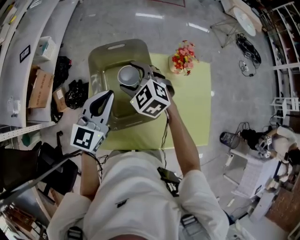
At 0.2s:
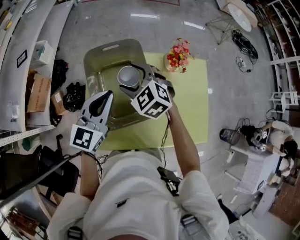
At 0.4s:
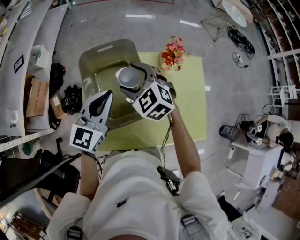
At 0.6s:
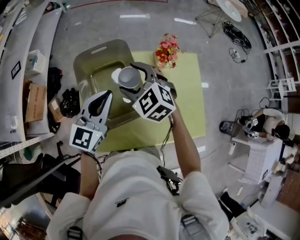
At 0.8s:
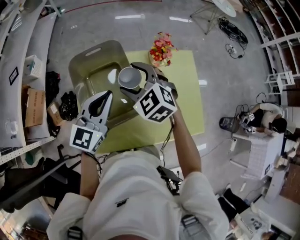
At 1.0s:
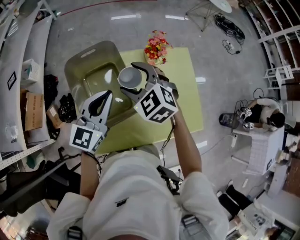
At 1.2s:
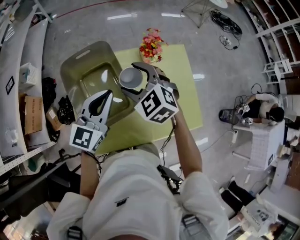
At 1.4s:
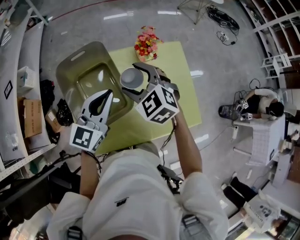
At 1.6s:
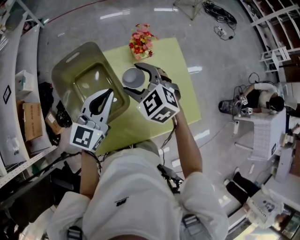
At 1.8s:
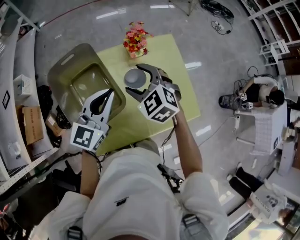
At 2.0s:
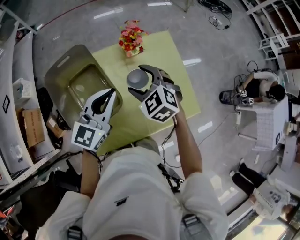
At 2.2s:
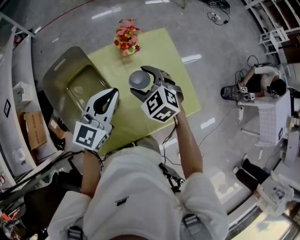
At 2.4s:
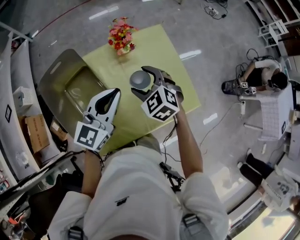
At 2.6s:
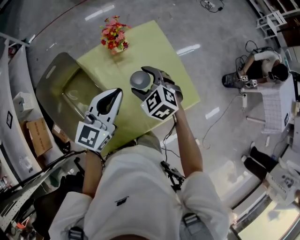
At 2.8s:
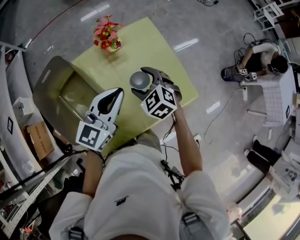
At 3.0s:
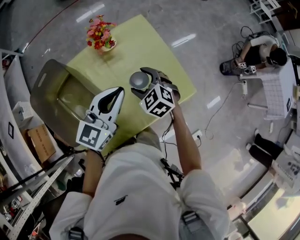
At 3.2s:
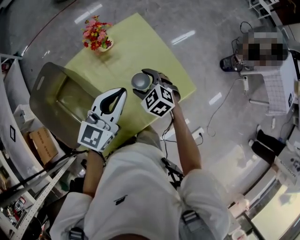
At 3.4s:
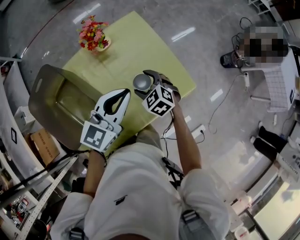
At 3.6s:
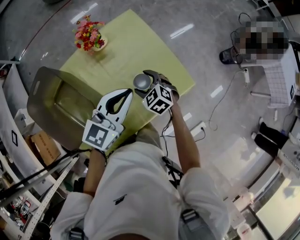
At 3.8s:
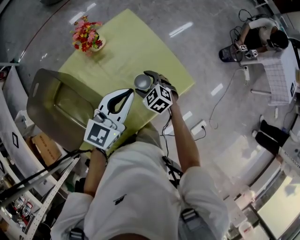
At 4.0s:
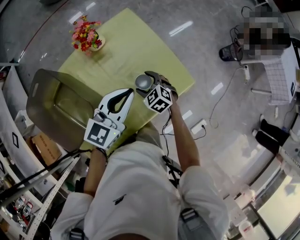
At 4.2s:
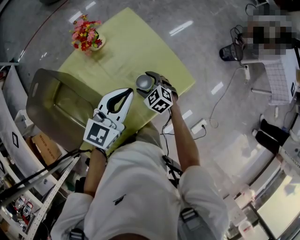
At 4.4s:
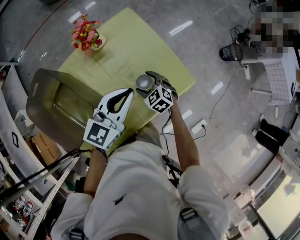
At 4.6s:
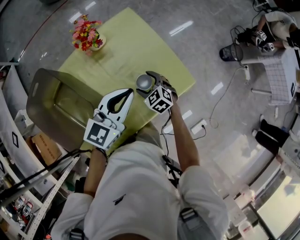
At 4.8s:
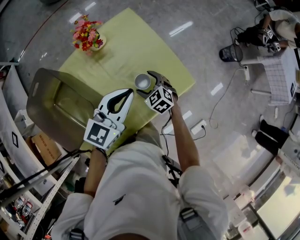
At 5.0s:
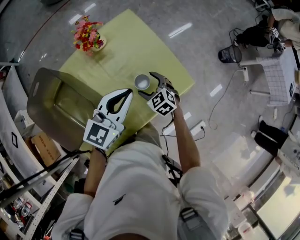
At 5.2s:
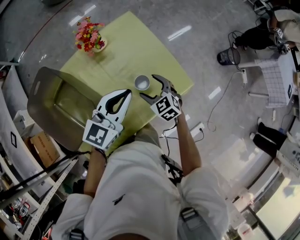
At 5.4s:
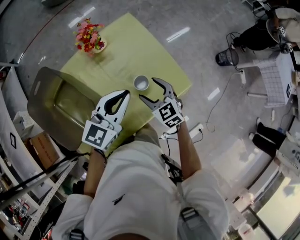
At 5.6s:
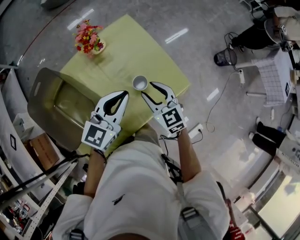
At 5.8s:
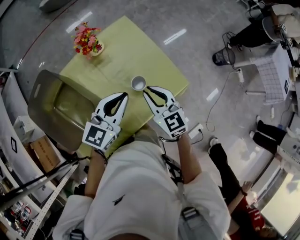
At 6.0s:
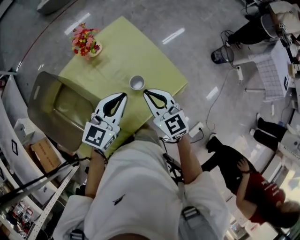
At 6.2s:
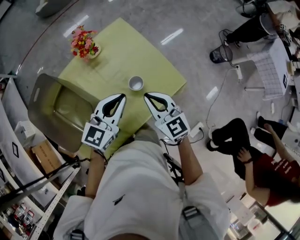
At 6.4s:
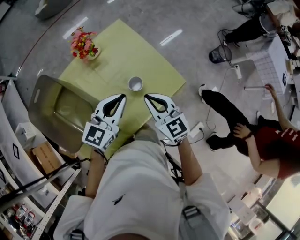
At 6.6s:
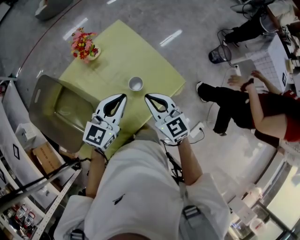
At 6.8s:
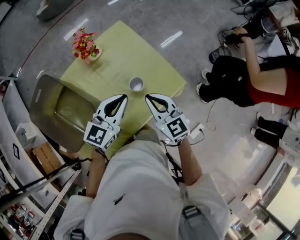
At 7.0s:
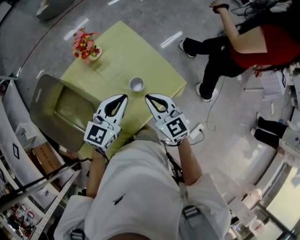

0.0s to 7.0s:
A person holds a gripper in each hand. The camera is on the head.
0.0s to 1.4s: Both grippers travel together to the right, roughly 15 cm.
1.4s to 2.8s: The right gripper shifts approximately 20 cm to the right and downward, and swivels roughly 20 degrees, while the left gripper heads to the right, covering approximately 15 cm, and turns by roughly 20 degrees.
2.8s to 4.2s: The right gripper is displaced downward and to the right by some 15 cm. The left gripper is displaced to the right by about 10 cm.
4.2s to 5.6s: The right gripper moves upward, approximately 15 cm, rotates about 30 degrees, and closes up.
5.6s to 7.0s: The right gripper ends up some 5 cm from where it was, and closes.

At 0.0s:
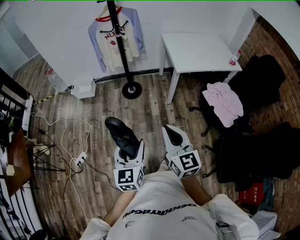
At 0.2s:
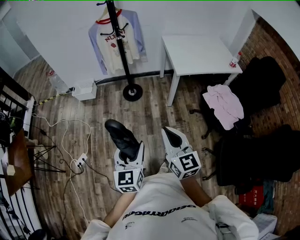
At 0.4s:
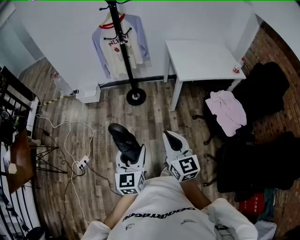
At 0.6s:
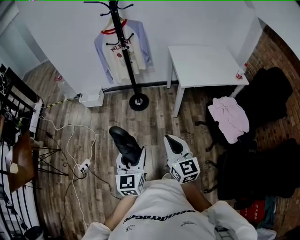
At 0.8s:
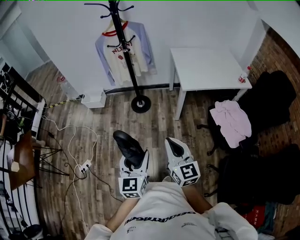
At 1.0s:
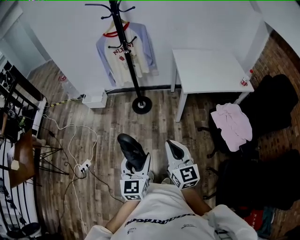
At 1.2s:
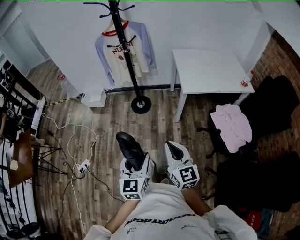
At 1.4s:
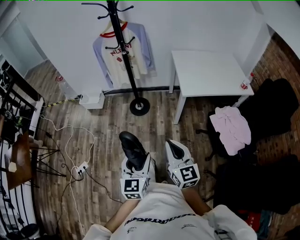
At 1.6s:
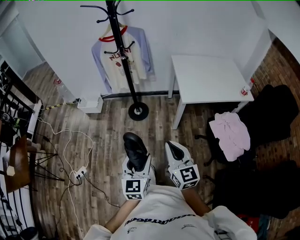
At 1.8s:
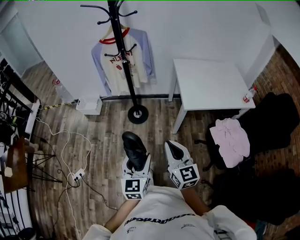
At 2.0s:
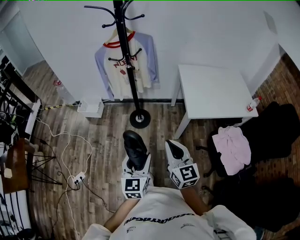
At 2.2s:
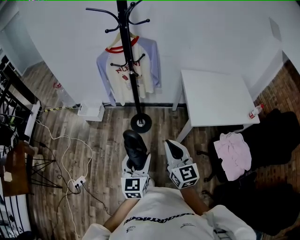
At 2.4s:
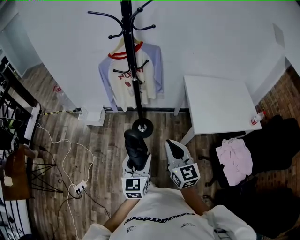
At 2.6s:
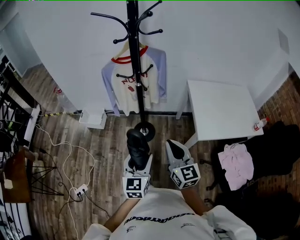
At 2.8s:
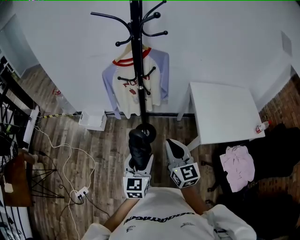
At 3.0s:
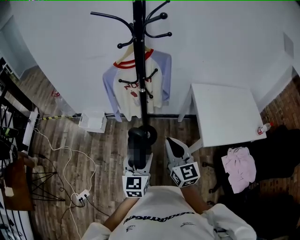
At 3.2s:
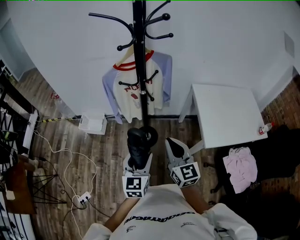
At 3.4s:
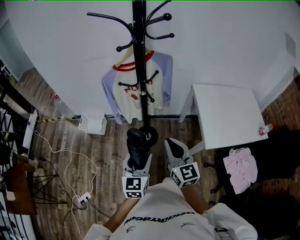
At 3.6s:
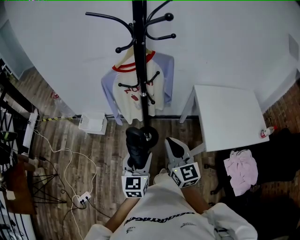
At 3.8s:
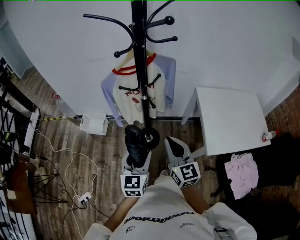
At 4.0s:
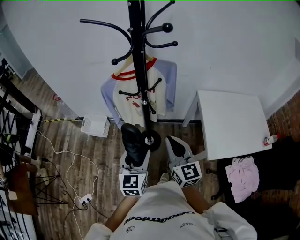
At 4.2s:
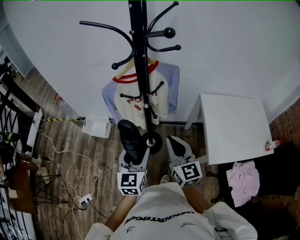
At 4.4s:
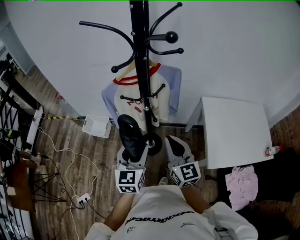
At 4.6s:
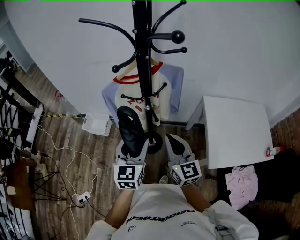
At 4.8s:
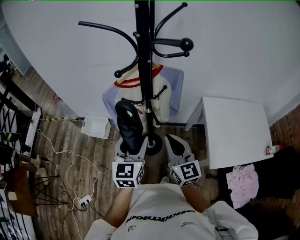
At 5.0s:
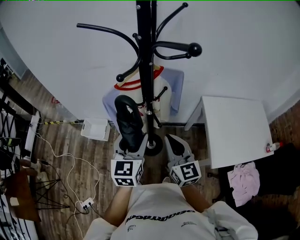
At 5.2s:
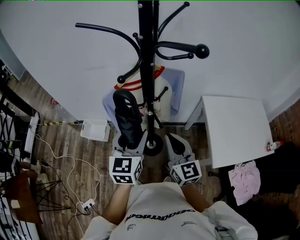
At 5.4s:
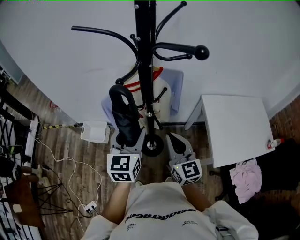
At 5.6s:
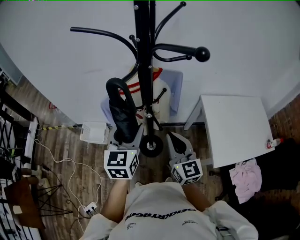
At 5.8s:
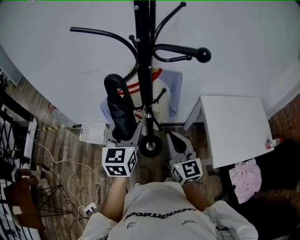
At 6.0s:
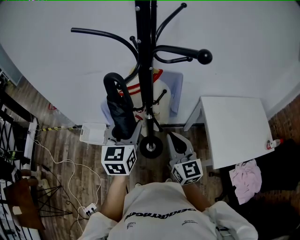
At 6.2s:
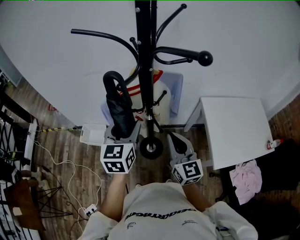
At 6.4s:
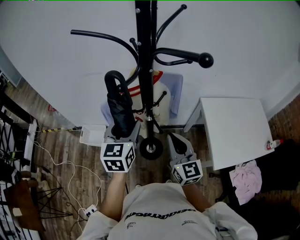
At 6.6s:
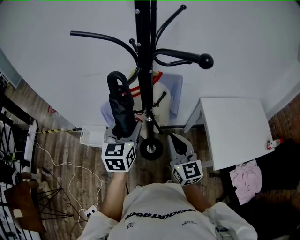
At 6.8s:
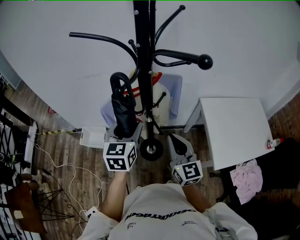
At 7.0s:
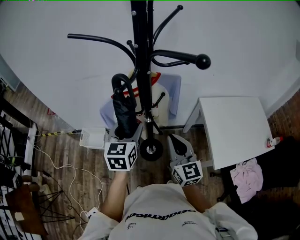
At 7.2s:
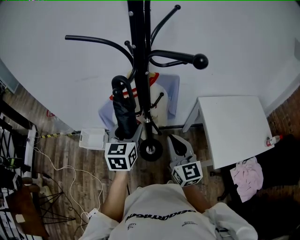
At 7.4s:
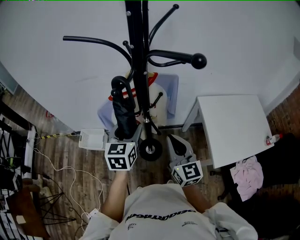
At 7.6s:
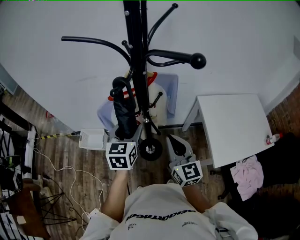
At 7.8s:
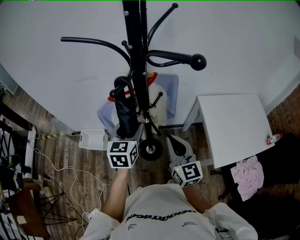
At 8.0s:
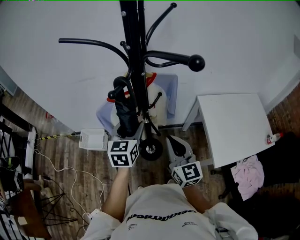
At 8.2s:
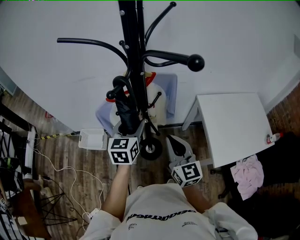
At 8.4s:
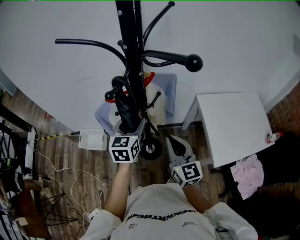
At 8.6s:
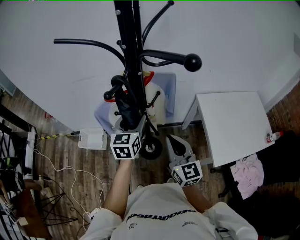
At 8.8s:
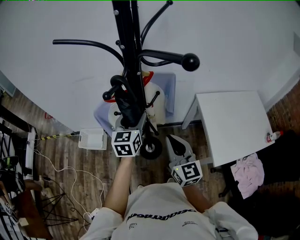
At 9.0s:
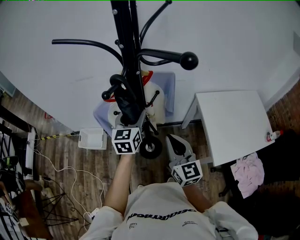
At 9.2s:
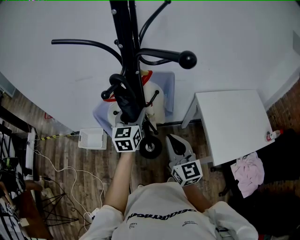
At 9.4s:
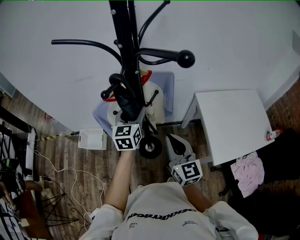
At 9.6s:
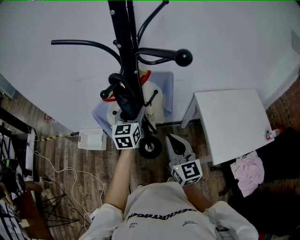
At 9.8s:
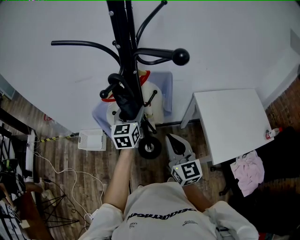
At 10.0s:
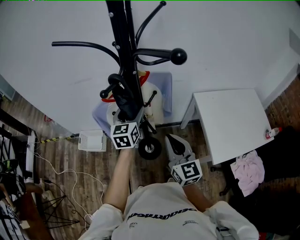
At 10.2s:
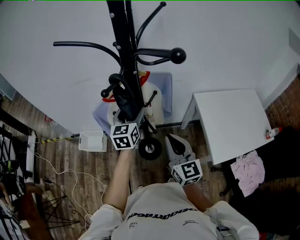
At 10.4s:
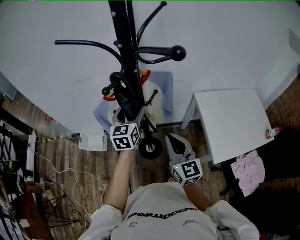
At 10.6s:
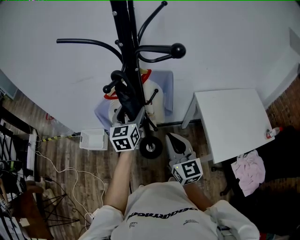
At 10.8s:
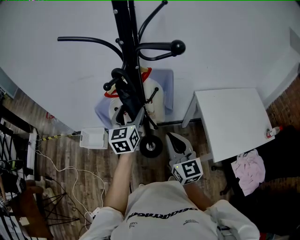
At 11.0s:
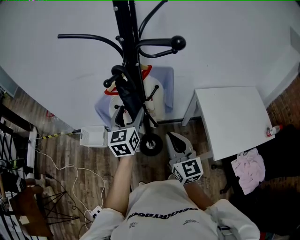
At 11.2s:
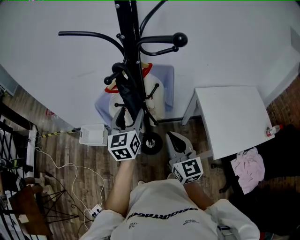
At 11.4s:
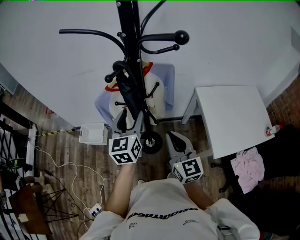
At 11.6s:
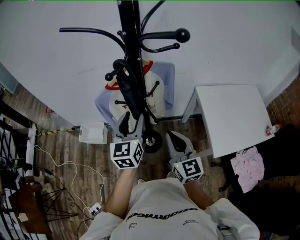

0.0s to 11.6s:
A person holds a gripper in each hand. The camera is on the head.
0.0s to 1.4s: Both grippers move to the right and forward, roughly 15 cm.
1.4s to 2.8s: The two grippers go roughly 40 cm forward.
2.8s to 4.4s: The grippers both shift forward by roughly 20 cm.
4.4s to 5.8s: The right gripper is displaced forward by approximately 5 cm, while the left gripper is displaced forward and upward by approximately 15 cm.
5.8s to 7.2s: The left gripper ends up about 5 cm from where it was.
7.2s to 8.8s: The left gripper heads forward, covering some 5 cm.
8.8s to 10.2s: The grippers make only small movements.
10.2s to 11.6s: The left gripper shifts roughly 10 cm backward, and closes up.

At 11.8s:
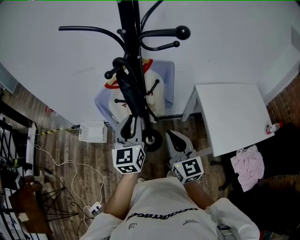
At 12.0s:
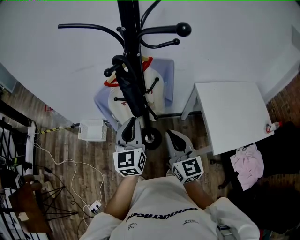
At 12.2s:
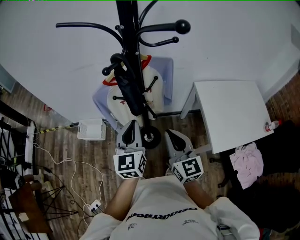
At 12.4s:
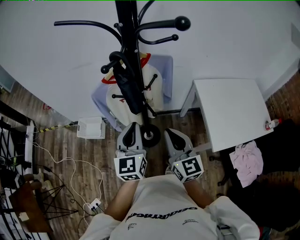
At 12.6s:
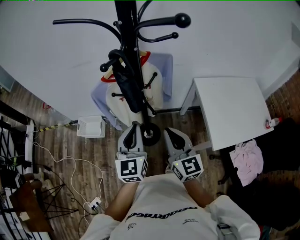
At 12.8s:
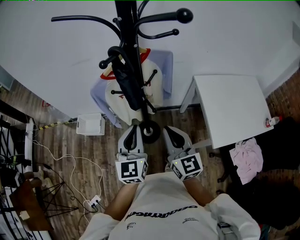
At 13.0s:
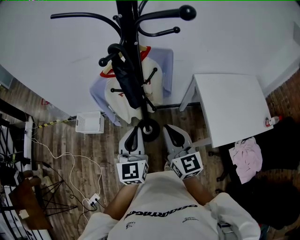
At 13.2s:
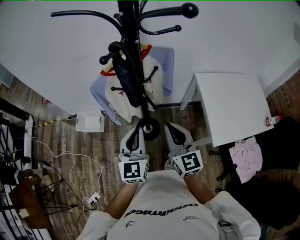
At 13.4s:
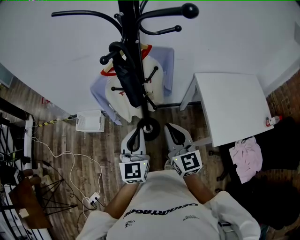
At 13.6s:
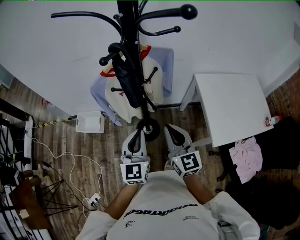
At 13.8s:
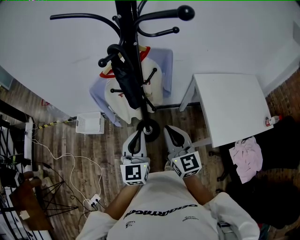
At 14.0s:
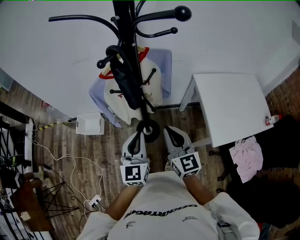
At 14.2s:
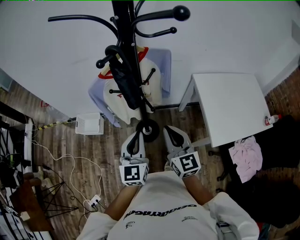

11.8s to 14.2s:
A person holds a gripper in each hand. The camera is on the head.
11.8s to 13.0s: The left gripper heads backward, covering about 5 cm.
13.0s to 14.2s: The grippers move only a little.

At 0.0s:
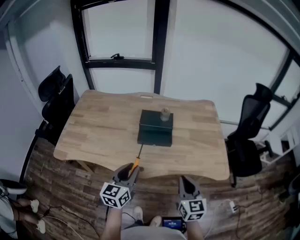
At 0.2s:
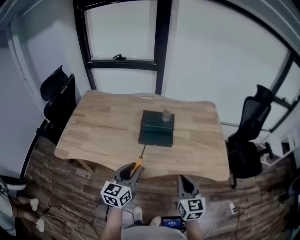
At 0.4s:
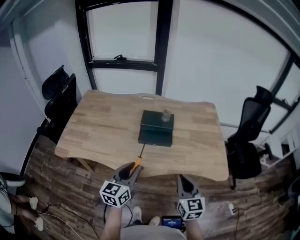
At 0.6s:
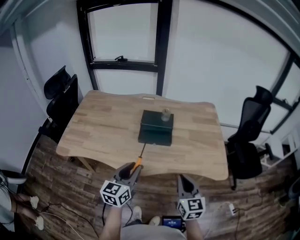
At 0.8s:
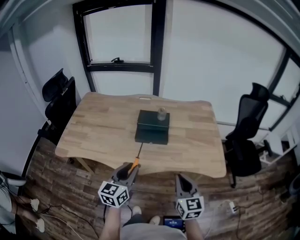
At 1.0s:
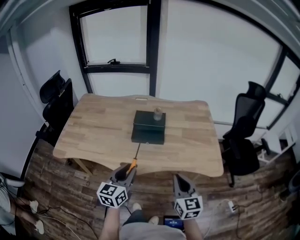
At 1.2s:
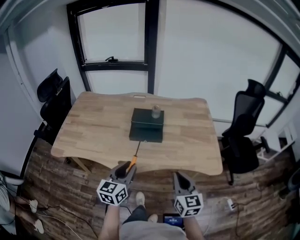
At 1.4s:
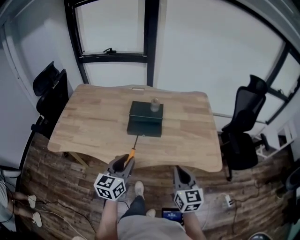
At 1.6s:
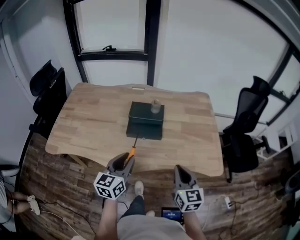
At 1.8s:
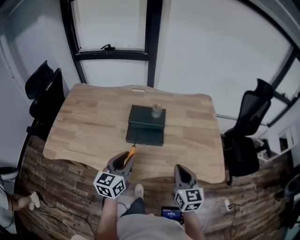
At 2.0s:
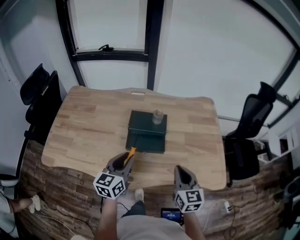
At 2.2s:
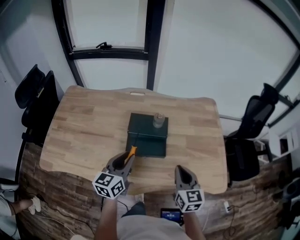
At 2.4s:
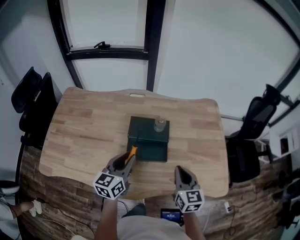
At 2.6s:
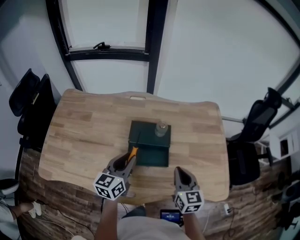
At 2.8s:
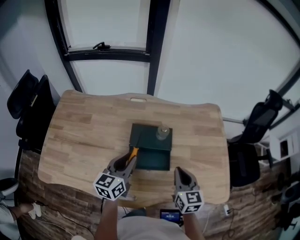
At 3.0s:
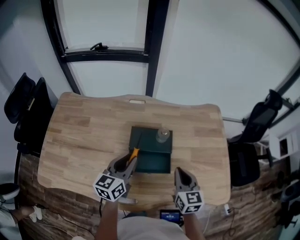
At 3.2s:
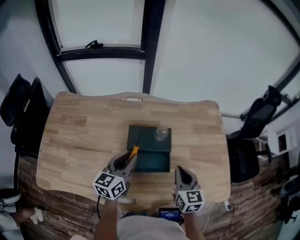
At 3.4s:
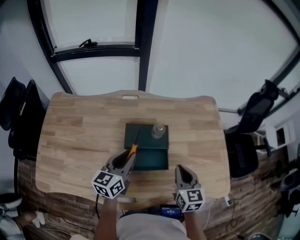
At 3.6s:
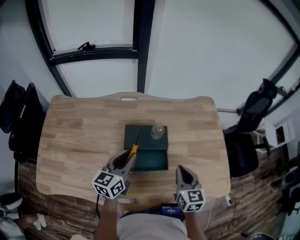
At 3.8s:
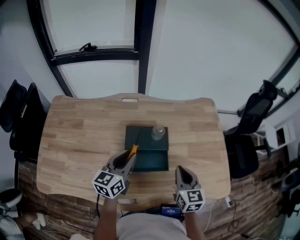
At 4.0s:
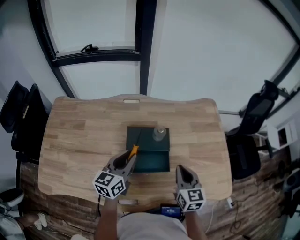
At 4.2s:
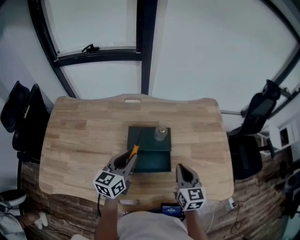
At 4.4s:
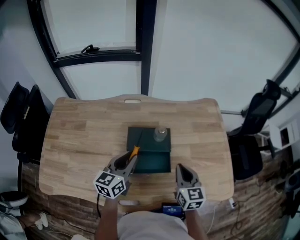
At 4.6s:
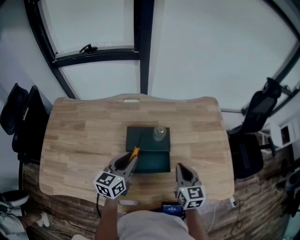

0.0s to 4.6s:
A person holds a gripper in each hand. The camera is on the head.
0.0s to 1.6s: The left gripper moves about 5 cm.
1.6s to 3.0s: The two grippers go some 25 cm forward.
3.0s to 4.6s: There are only small adjustments of the grippers.
